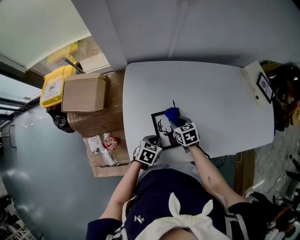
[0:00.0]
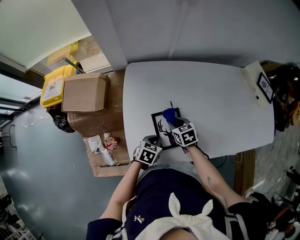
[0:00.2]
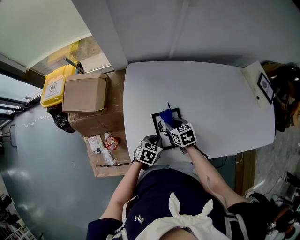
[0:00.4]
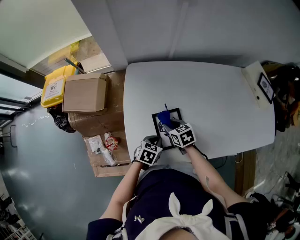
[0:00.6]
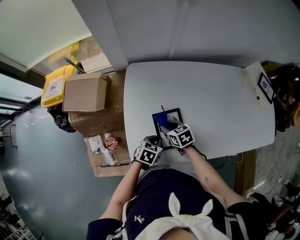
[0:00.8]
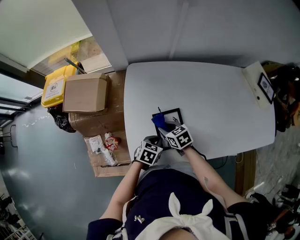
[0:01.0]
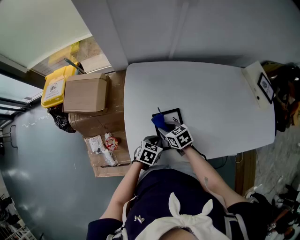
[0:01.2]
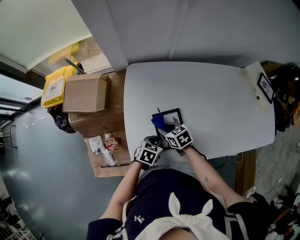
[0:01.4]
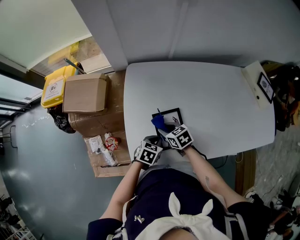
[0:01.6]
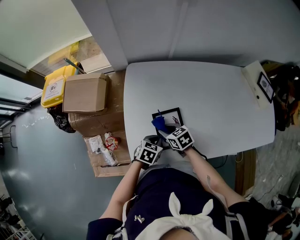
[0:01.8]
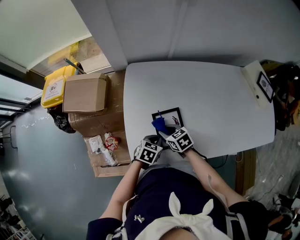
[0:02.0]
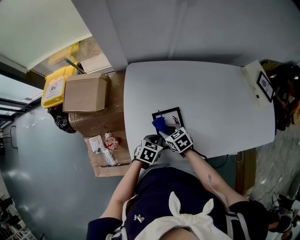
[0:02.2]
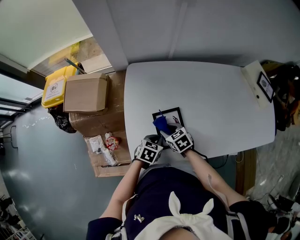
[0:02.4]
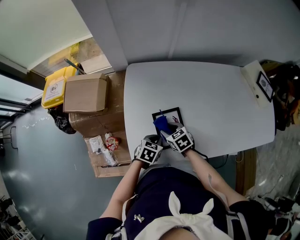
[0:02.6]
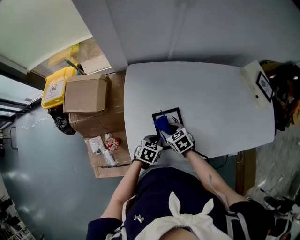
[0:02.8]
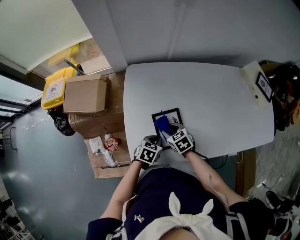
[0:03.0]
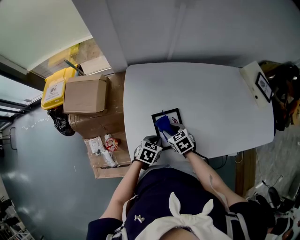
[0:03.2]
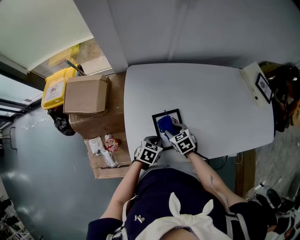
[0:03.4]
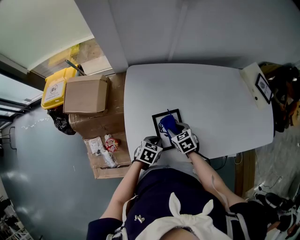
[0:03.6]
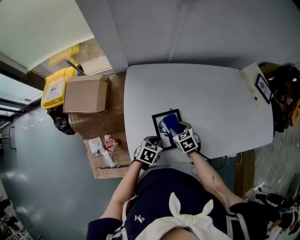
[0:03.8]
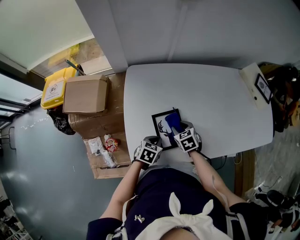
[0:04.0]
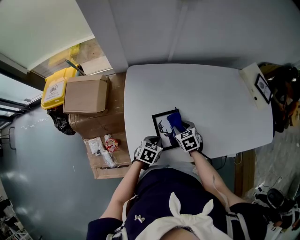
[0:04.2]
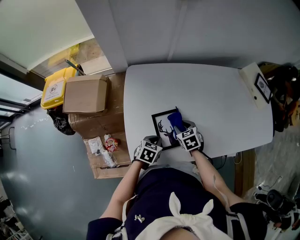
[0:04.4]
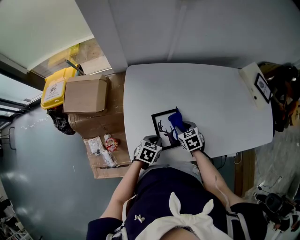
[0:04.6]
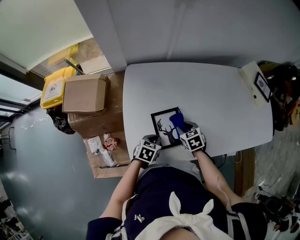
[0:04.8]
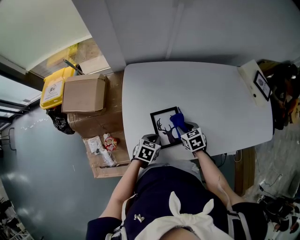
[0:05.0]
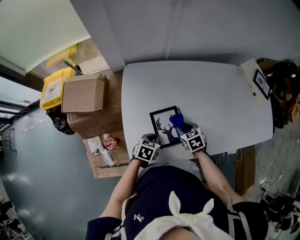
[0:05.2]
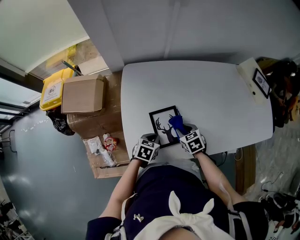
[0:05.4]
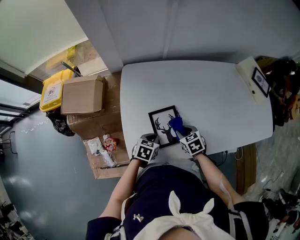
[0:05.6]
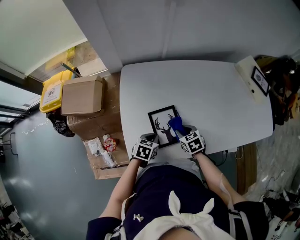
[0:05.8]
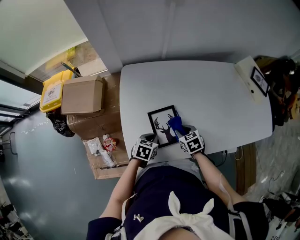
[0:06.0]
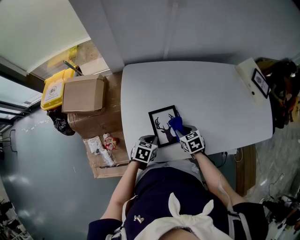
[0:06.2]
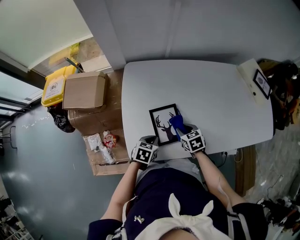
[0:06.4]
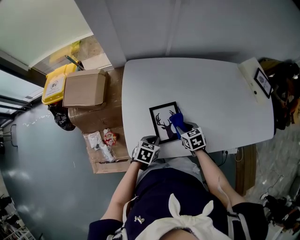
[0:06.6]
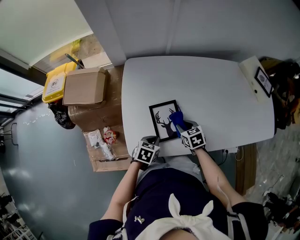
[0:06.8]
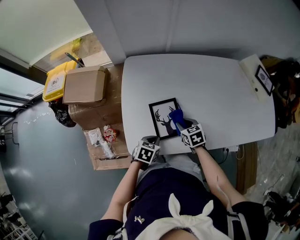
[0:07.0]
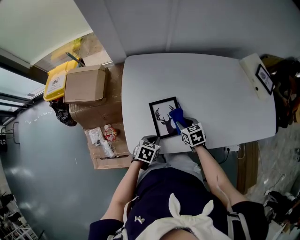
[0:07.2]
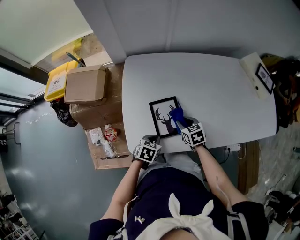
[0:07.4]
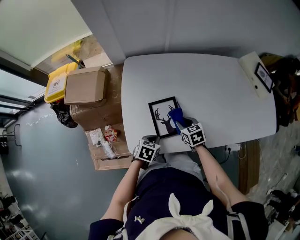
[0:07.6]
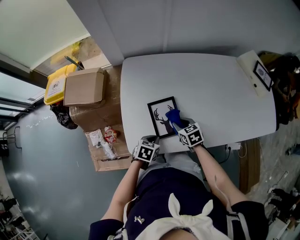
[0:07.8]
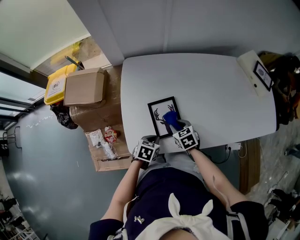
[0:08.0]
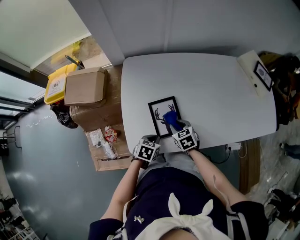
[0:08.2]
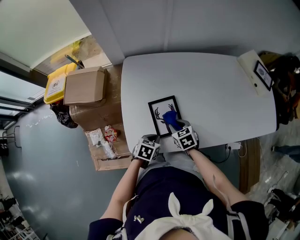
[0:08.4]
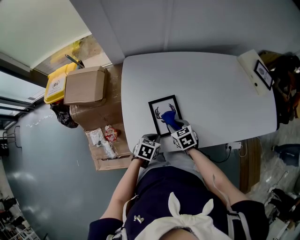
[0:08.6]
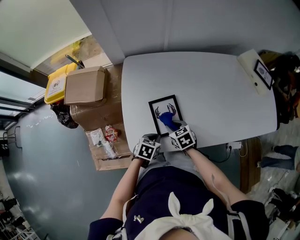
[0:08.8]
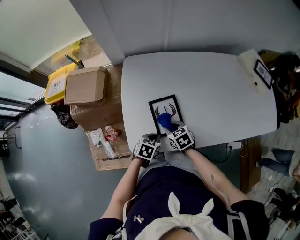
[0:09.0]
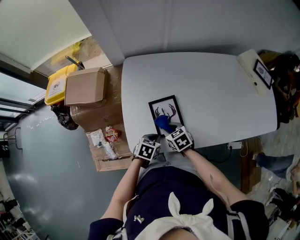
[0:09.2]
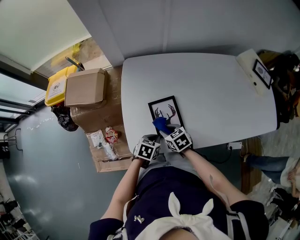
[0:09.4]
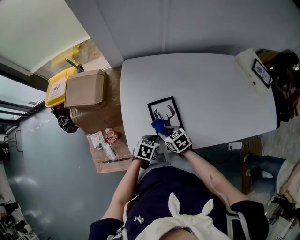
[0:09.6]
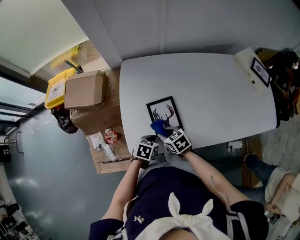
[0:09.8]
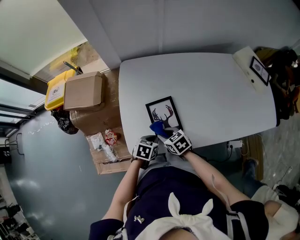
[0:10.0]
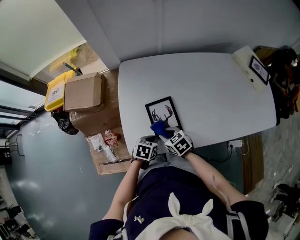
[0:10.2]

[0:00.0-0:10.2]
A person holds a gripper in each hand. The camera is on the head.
0:00.0 to 0:01.4: The right gripper heads to the left, covering approximately 5 cm.
0:01.4 to 0:03.0: The grippers stay close to where they were, moving slightly.
0:03.0 to 0:04.4: The right gripper is displaced to the right by some 5 cm.
0:04.4 to 0:05.8: The grippers stay close to where they were, moving slightly.
0:05.8 to 0:07.2: The left gripper shifts roughly 5 cm backward.
0:07.2 to 0:08.8: The right gripper travels to the left by some 5 cm.
0:08.8 to 0:10.2: The grippers make only small movements.

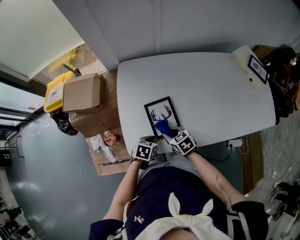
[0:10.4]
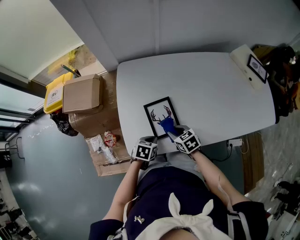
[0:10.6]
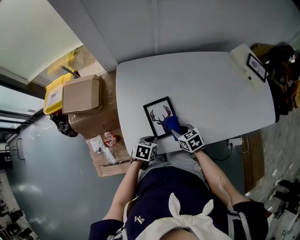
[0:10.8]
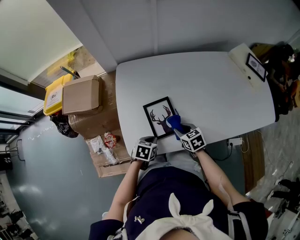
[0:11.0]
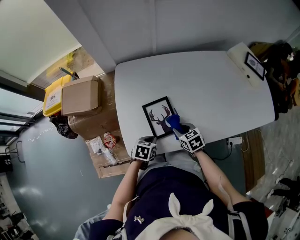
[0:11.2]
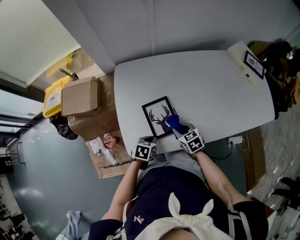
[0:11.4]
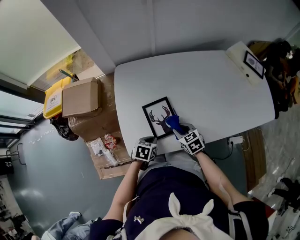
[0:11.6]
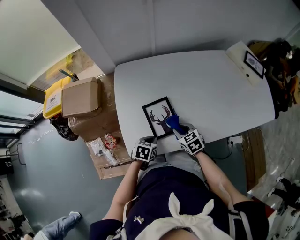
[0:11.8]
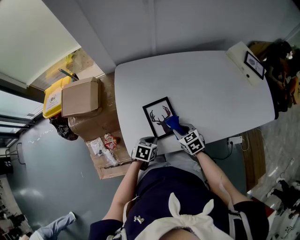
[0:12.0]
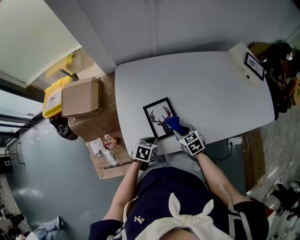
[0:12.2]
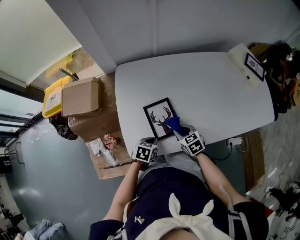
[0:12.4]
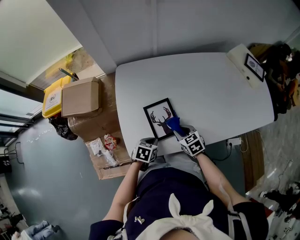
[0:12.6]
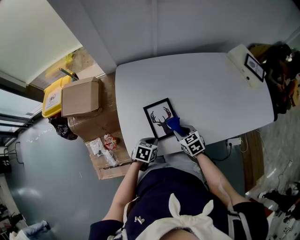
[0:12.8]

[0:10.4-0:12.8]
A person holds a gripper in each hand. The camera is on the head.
0:10.4 to 0:11.6: The right gripper moves to the right, roughly 5 cm.
0:11.6 to 0:12.8: Both grippers stay put.

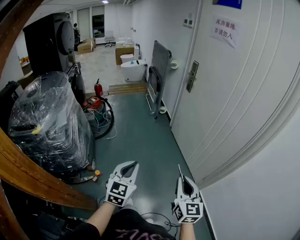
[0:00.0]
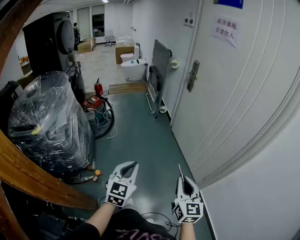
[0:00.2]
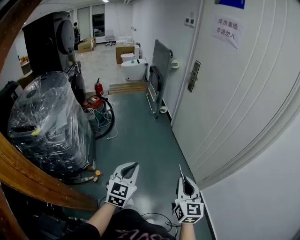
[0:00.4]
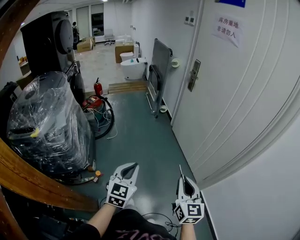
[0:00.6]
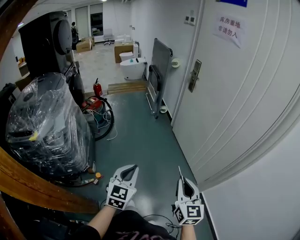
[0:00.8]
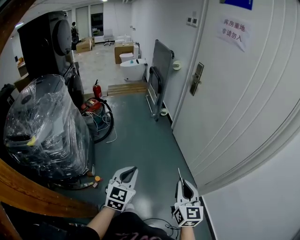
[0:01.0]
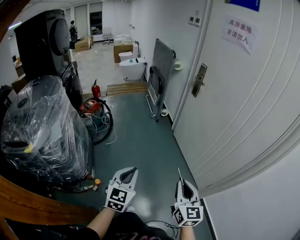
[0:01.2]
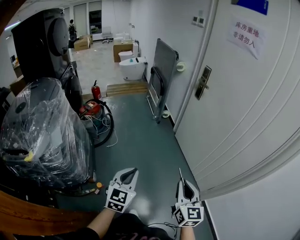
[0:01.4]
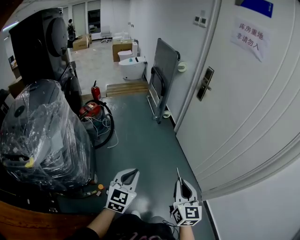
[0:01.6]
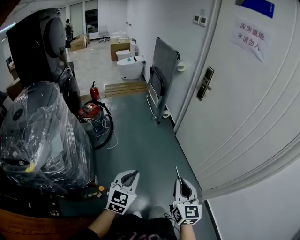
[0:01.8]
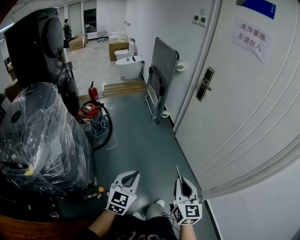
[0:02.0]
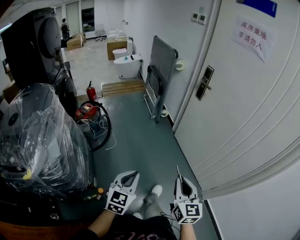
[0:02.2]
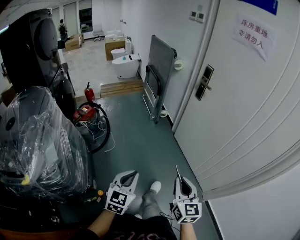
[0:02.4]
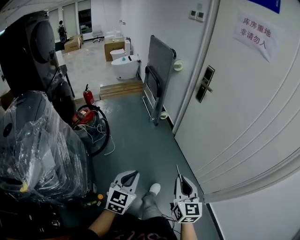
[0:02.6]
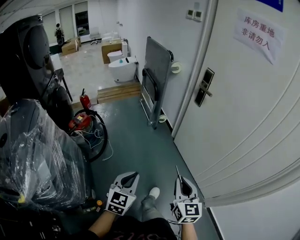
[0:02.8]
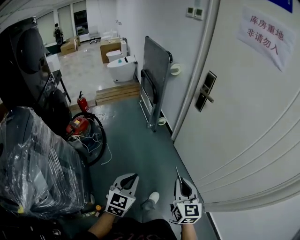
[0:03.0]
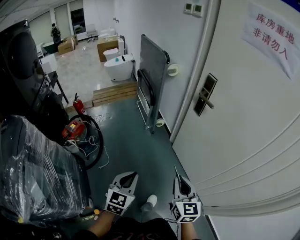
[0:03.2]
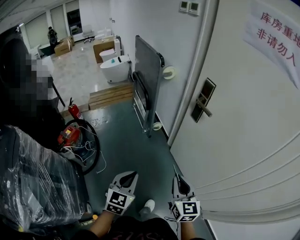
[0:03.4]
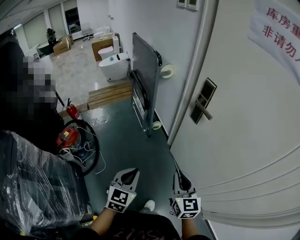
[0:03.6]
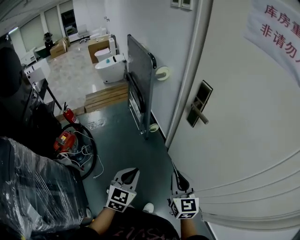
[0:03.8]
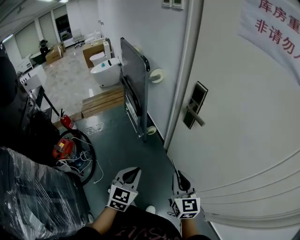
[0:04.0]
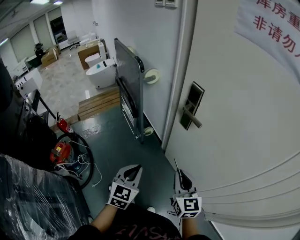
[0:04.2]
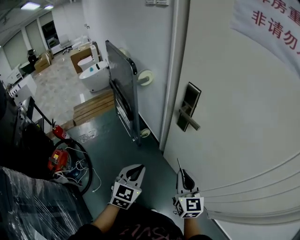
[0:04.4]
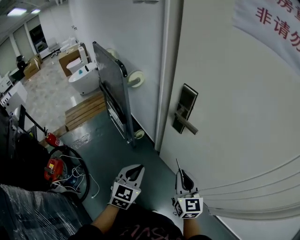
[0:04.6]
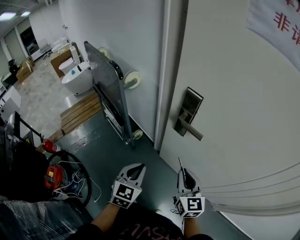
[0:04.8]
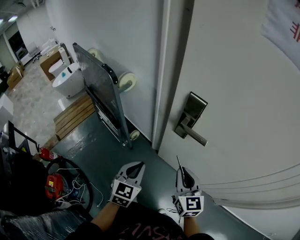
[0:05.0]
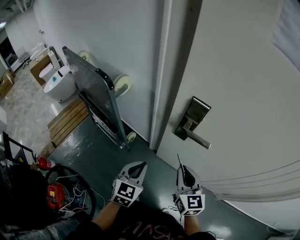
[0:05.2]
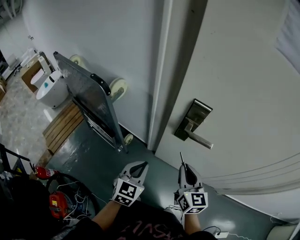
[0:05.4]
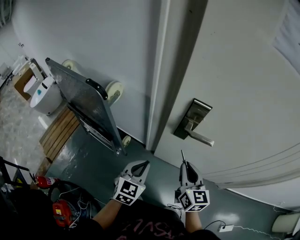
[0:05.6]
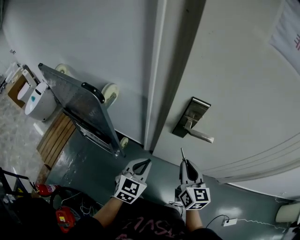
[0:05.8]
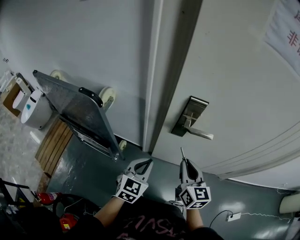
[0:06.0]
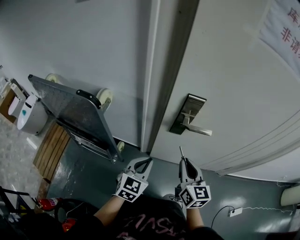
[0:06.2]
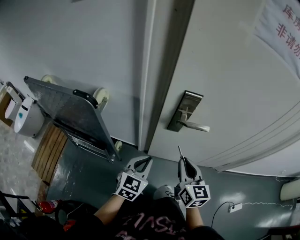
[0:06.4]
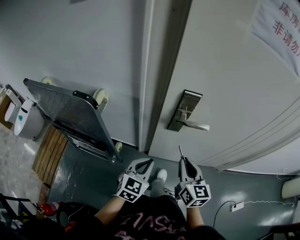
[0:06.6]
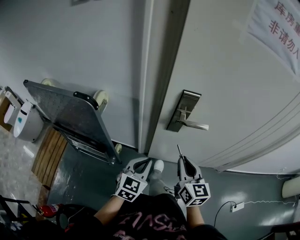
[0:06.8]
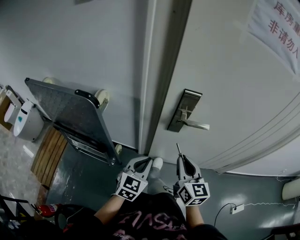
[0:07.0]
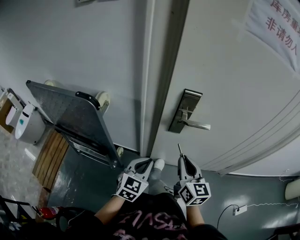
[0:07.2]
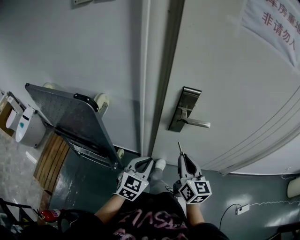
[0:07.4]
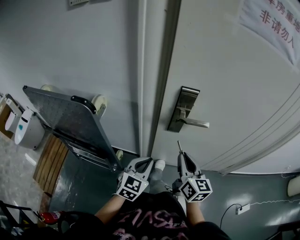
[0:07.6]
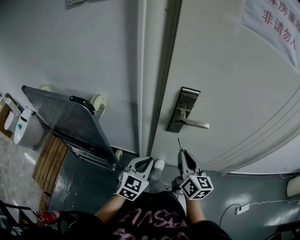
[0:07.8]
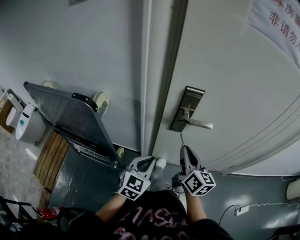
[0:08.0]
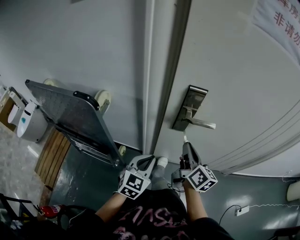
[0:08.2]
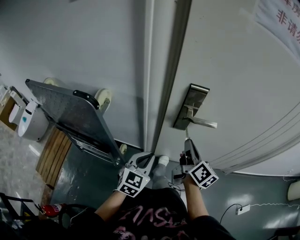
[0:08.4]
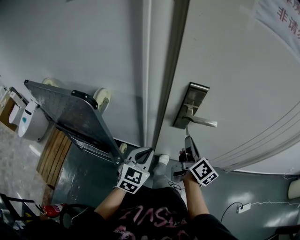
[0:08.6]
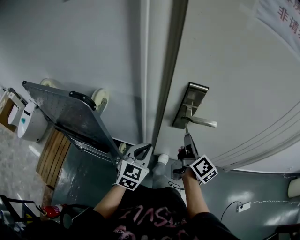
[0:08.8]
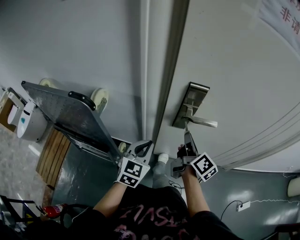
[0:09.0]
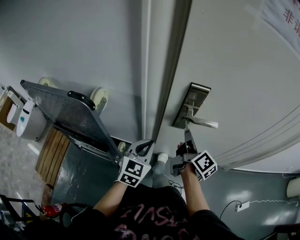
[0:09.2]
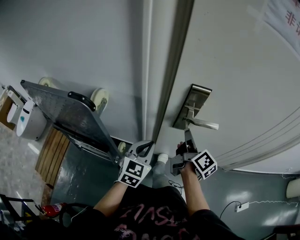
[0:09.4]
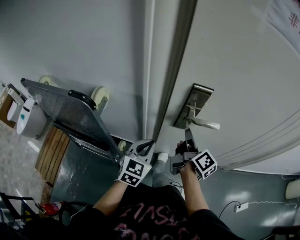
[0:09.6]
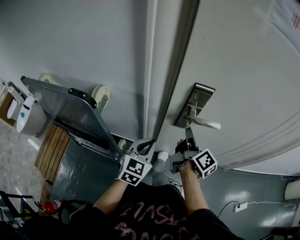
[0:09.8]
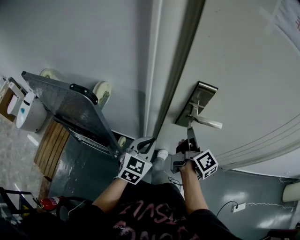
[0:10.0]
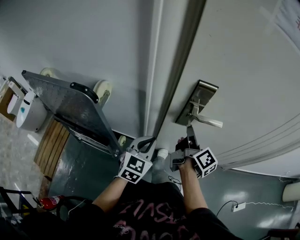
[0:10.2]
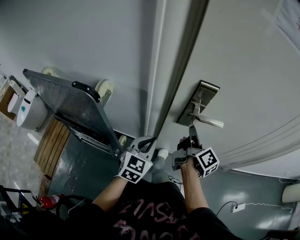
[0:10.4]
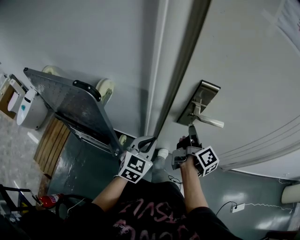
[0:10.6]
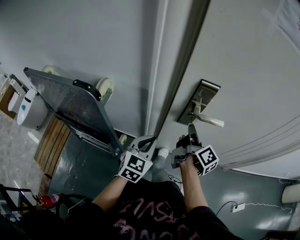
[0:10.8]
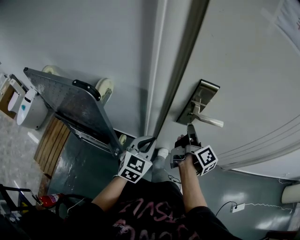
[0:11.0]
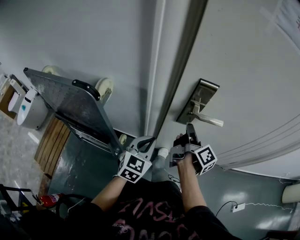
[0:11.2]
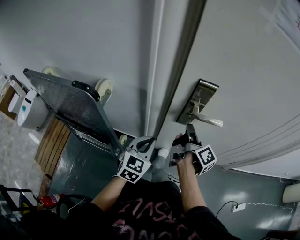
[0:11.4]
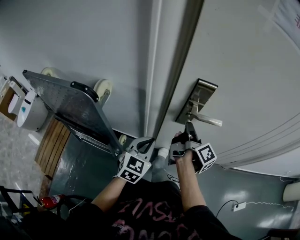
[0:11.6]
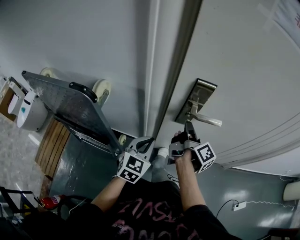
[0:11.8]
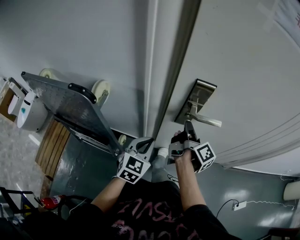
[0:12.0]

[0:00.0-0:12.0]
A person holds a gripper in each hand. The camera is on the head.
0:00.0 to 0:01.6: Both grippers move forward and to the left, roughly 20 cm.
0:01.6 to 0:03.0: The grippers both shift forward by roughly 25 cm.
0:03.0 to 0:04.4: The two grippers go approximately 30 cm forward.
0:04.4 to 0:06.0: The left gripper shifts by approximately 20 cm, and swivels some 40 degrees. The right gripper ends up approximately 15 cm from where it was, and changes its angle by approximately 40 degrees.
0:06.0 to 0:07.6: The grippers move only a little.
0:07.6 to 0:09.0: The right gripper heads forward, covering roughly 10 cm, and changes its angle by roughly 40 degrees, while the left gripper heads forward, covering roughly 5 cm.
0:09.0 to 0:10.4: The grippers move only a little.
0:10.4 to 0:12.0: The grippers move only a little.
